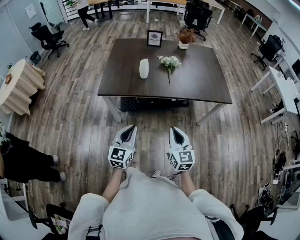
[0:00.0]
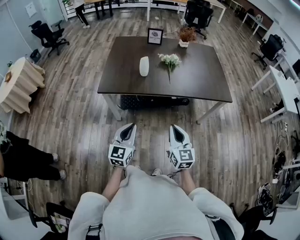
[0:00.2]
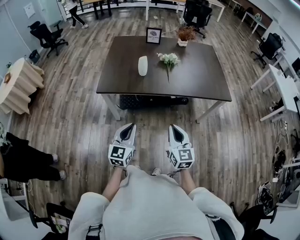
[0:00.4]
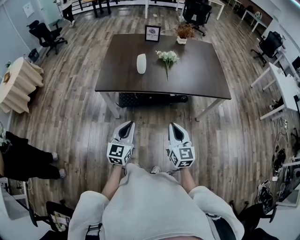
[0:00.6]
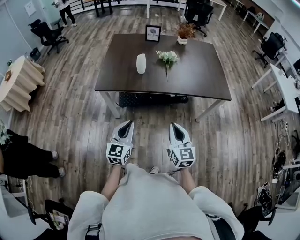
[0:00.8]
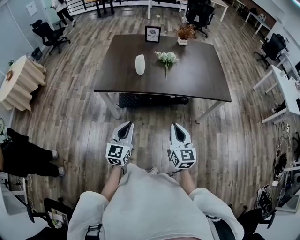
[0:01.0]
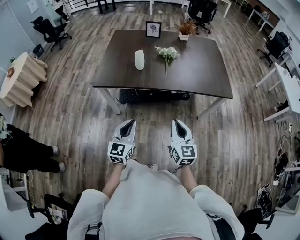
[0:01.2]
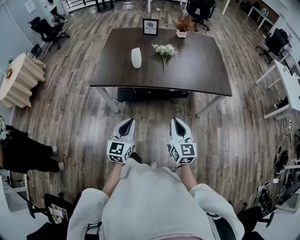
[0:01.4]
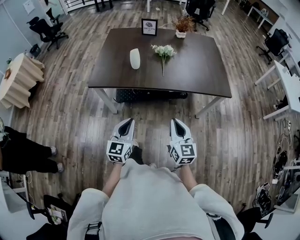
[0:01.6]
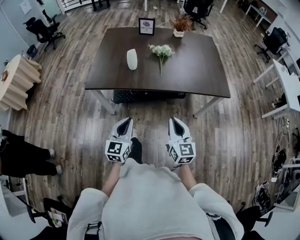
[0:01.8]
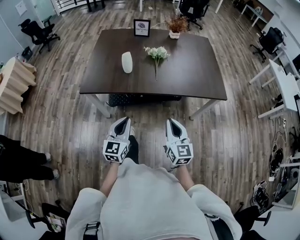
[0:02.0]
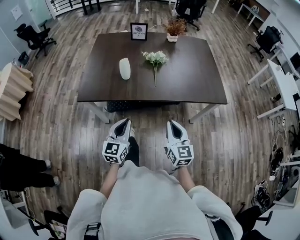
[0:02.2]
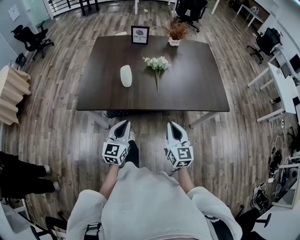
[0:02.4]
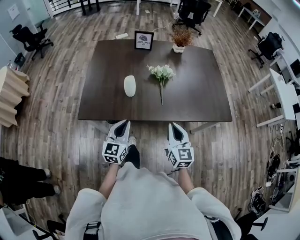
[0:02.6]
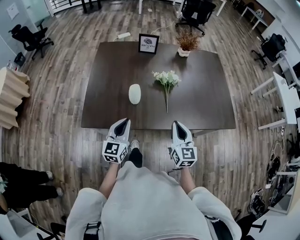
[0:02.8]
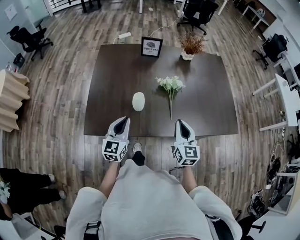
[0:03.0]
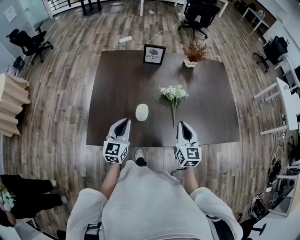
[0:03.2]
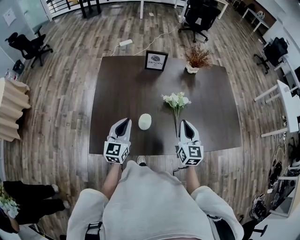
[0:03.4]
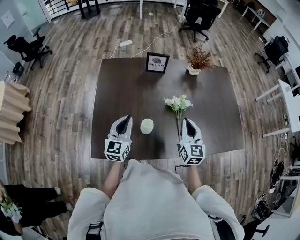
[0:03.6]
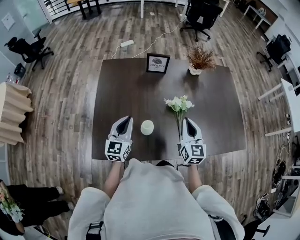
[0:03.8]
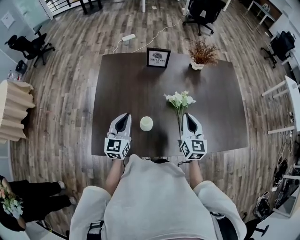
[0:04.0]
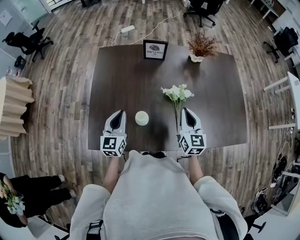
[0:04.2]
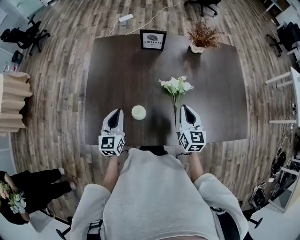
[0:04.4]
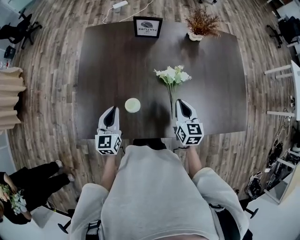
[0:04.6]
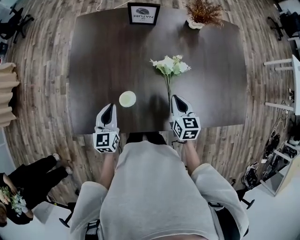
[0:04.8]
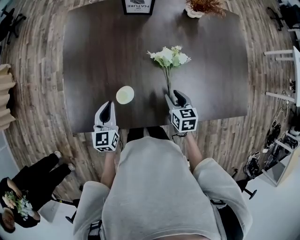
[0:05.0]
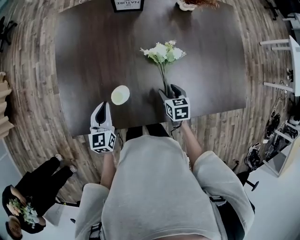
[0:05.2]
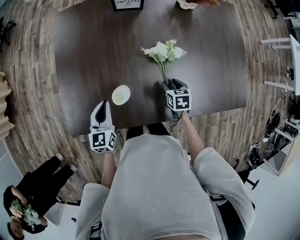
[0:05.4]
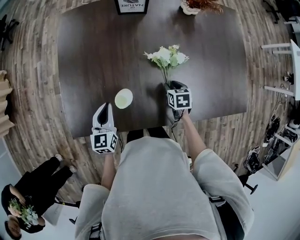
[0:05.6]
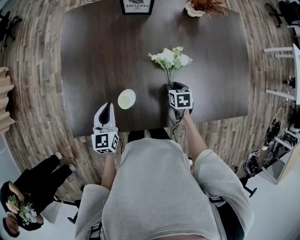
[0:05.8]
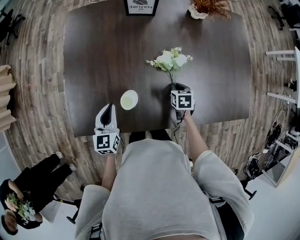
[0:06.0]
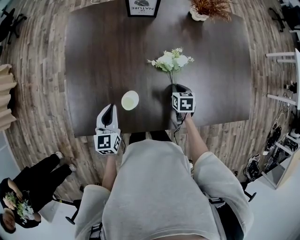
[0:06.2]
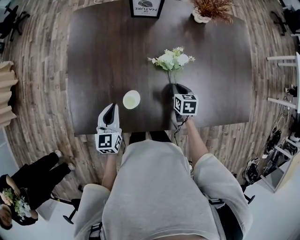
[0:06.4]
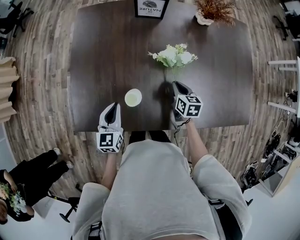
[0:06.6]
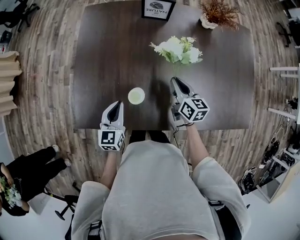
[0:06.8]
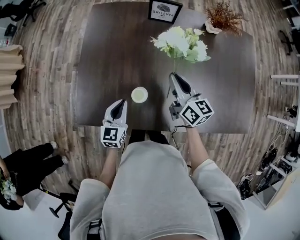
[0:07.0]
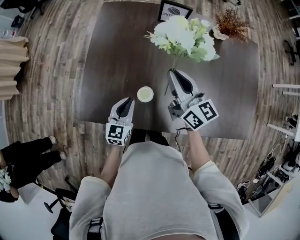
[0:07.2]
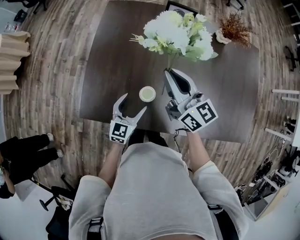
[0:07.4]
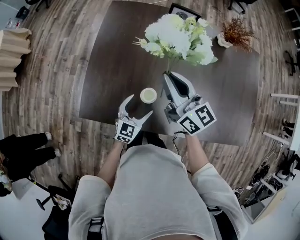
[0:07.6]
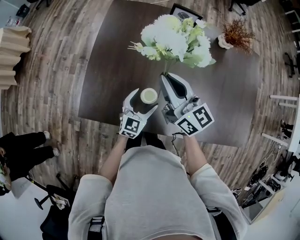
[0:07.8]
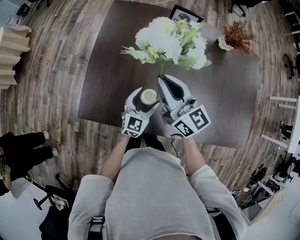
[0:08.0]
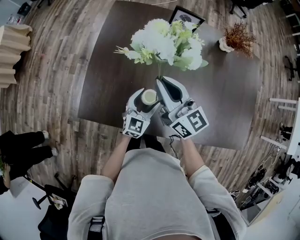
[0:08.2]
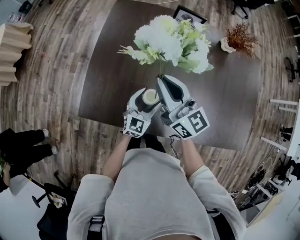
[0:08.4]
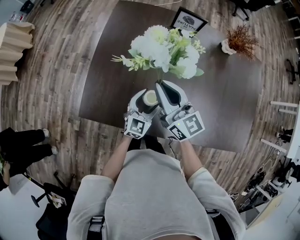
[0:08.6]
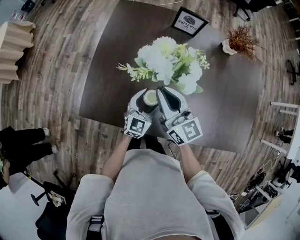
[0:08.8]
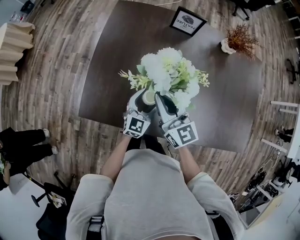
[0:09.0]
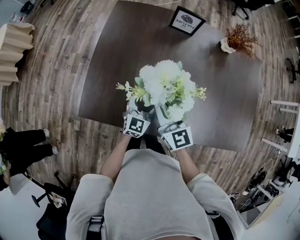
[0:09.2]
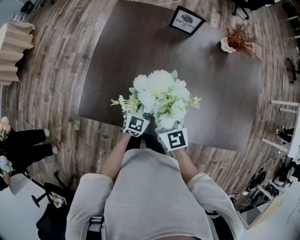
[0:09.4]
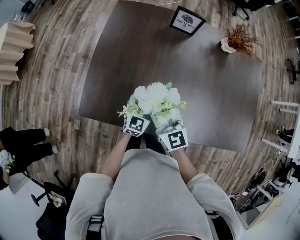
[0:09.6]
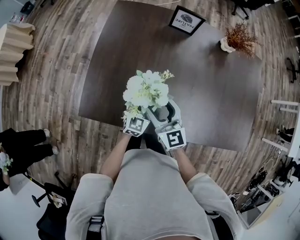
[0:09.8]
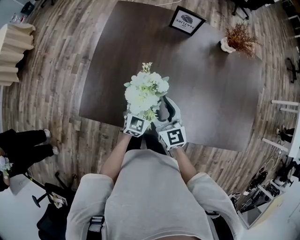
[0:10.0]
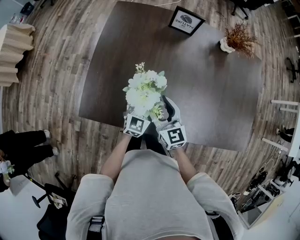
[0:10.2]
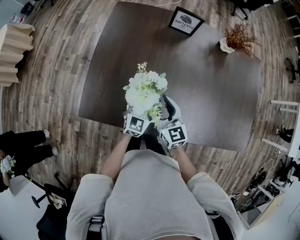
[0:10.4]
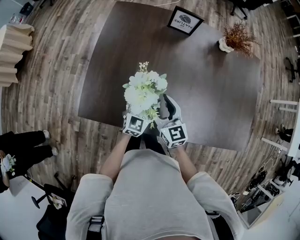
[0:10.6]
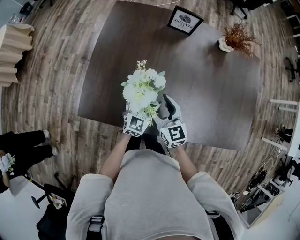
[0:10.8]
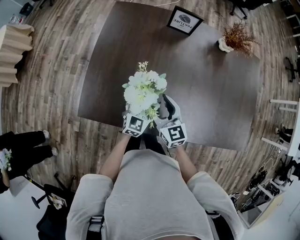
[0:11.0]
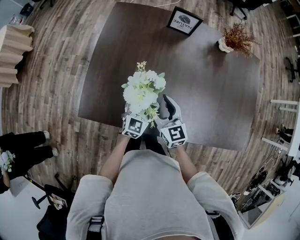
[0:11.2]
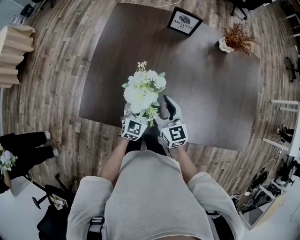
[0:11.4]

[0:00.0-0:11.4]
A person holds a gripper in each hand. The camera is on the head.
0:00.0 to 0:01.4: Both grippers move to the right, about 10 cm.
0:01.4 to 0:02.8: Both grippers move forward, approximately 30 cm.
0:02.8 to 0:04.2: The left gripper is displaced forward and to the left by approximately 20 cm. The right gripper moves forward, about 25 cm.
0:04.2 to 0:05.6: The left gripper shifts some 10 cm downward, while the right gripper travels downward by some 25 cm, points its fingers roughly 50 degrees further downward, and opens up.
0:05.6 to 0:07.2: The right gripper heads upward and to the left, covering roughly 30 cm, angles its fingers upward, by some 60 degrees, and closes.
0:07.2 to 0:08.6: The right gripper moves to the left, approximately 10 cm. Meanwhile the left gripper goes some 5 cm to the right, and opens its fingers.
0:08.6 to 0:10.0: The right gripper goes roughly 15 cm downward and backward, and opens.
0:10.0 to 0:11.4: There are only small adjustments of the grippers.

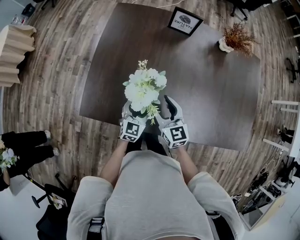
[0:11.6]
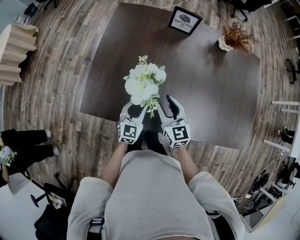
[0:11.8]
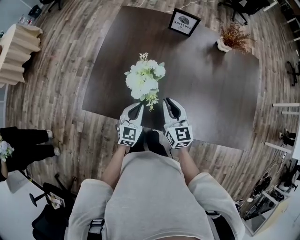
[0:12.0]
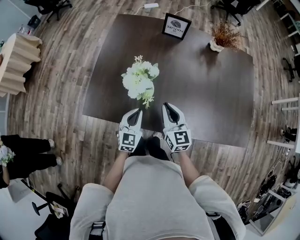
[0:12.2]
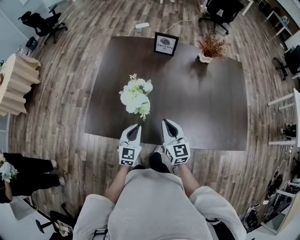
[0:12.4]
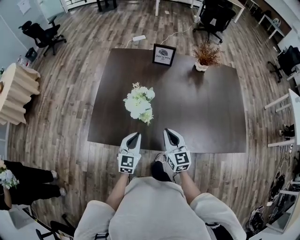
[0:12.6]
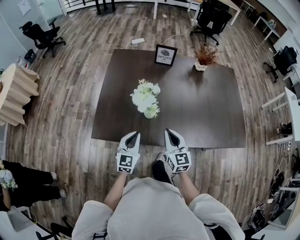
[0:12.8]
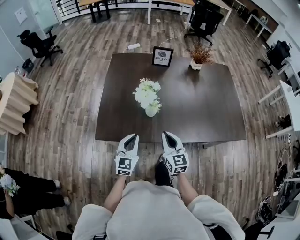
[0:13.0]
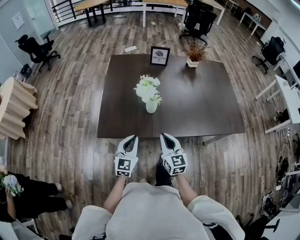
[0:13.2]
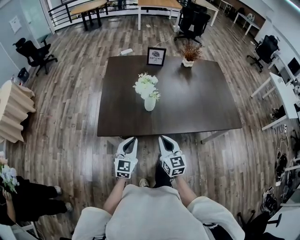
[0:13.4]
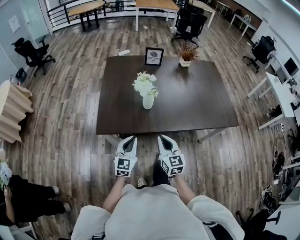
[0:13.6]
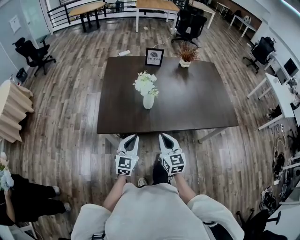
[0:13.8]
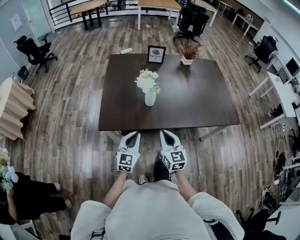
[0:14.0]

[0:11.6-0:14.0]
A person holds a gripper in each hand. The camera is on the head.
0:11.6 to 0:12.8: The right gripper moves backward and upward, some 15 cm, and closes, while the left gripper travels backward, upward and to the left by about 20 cm, and closes.
0:12.8 to 0:14.0: The two grippers go some 15 cm backward.

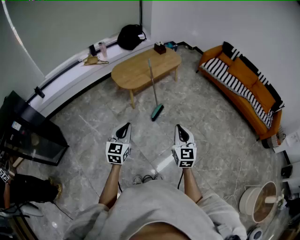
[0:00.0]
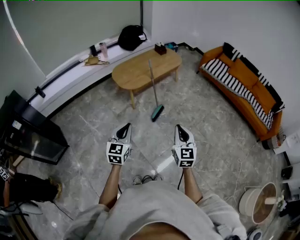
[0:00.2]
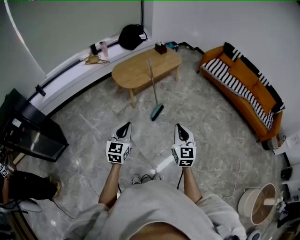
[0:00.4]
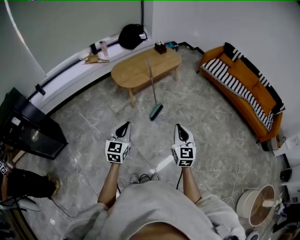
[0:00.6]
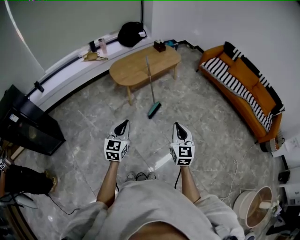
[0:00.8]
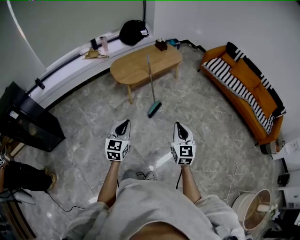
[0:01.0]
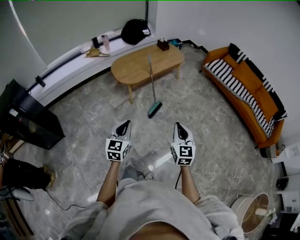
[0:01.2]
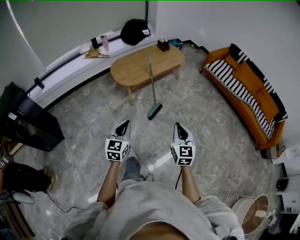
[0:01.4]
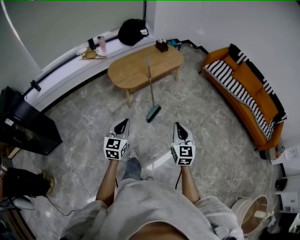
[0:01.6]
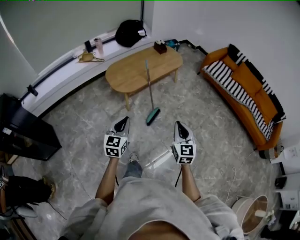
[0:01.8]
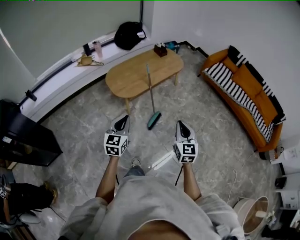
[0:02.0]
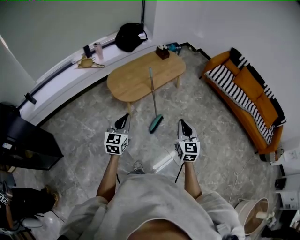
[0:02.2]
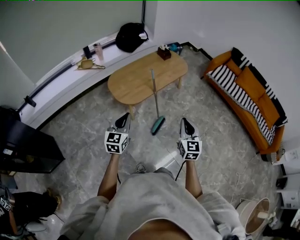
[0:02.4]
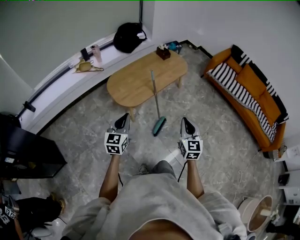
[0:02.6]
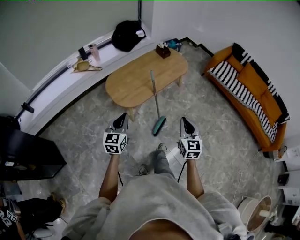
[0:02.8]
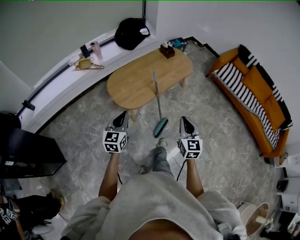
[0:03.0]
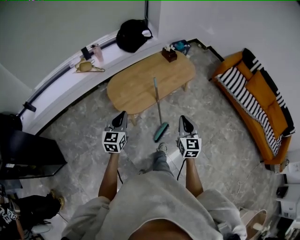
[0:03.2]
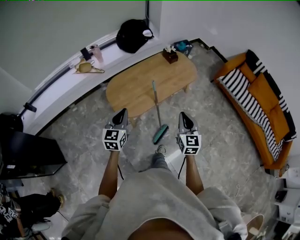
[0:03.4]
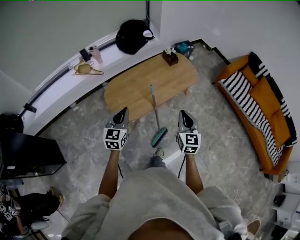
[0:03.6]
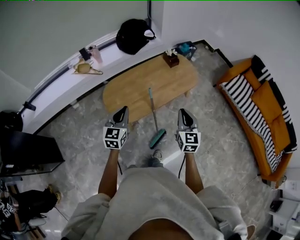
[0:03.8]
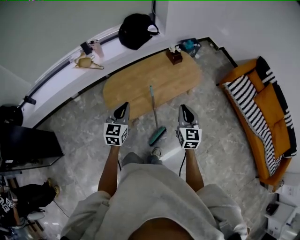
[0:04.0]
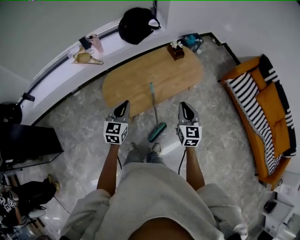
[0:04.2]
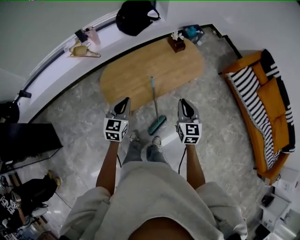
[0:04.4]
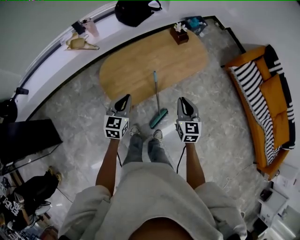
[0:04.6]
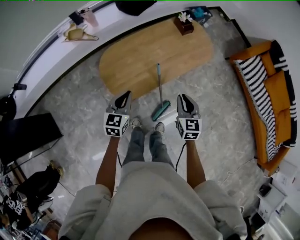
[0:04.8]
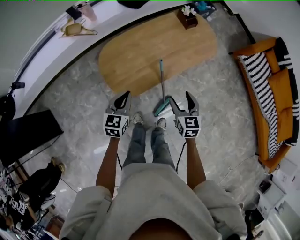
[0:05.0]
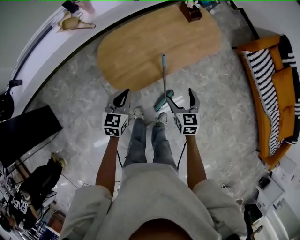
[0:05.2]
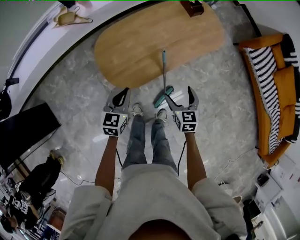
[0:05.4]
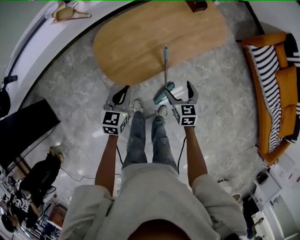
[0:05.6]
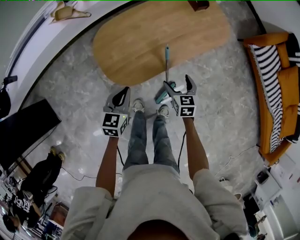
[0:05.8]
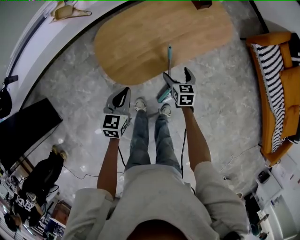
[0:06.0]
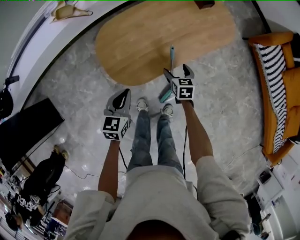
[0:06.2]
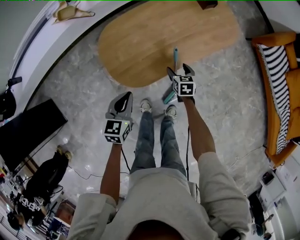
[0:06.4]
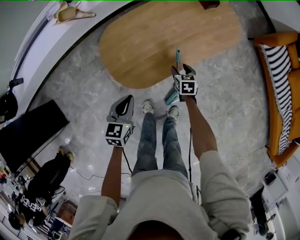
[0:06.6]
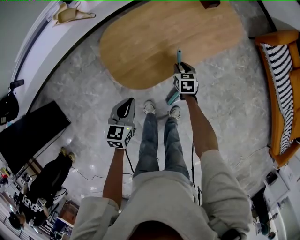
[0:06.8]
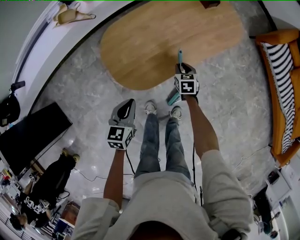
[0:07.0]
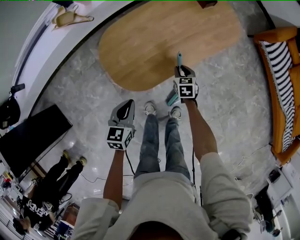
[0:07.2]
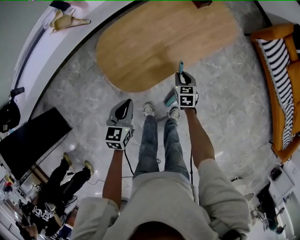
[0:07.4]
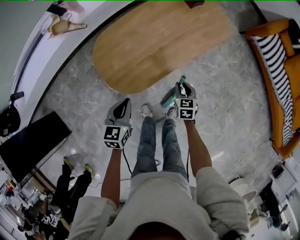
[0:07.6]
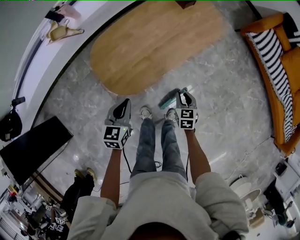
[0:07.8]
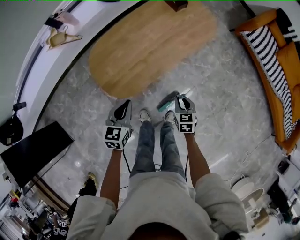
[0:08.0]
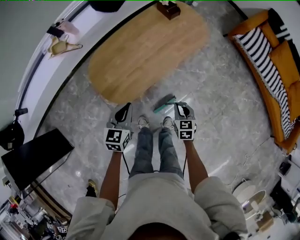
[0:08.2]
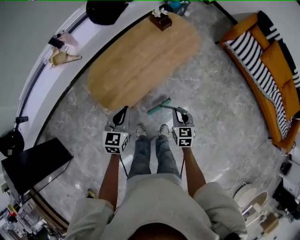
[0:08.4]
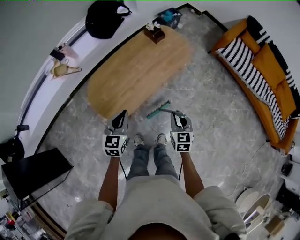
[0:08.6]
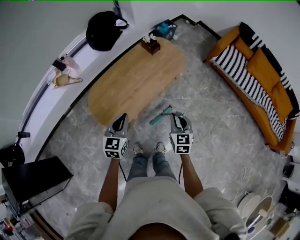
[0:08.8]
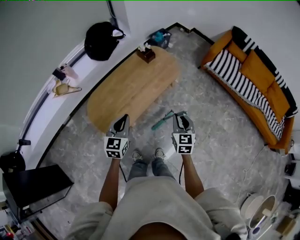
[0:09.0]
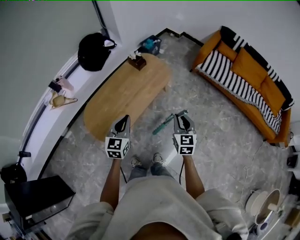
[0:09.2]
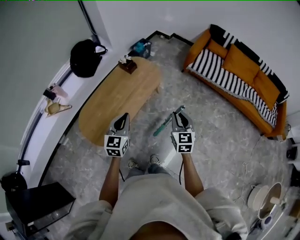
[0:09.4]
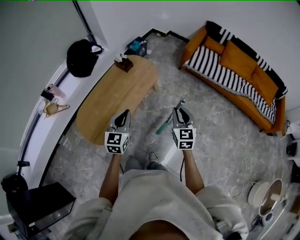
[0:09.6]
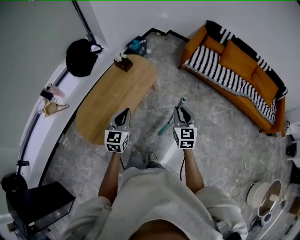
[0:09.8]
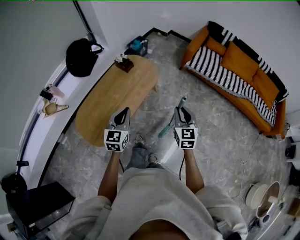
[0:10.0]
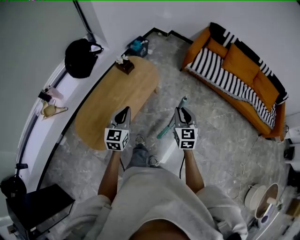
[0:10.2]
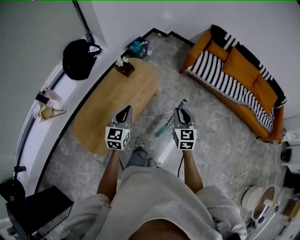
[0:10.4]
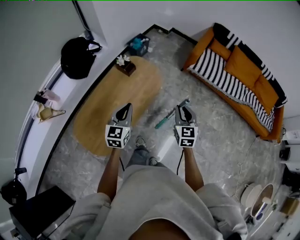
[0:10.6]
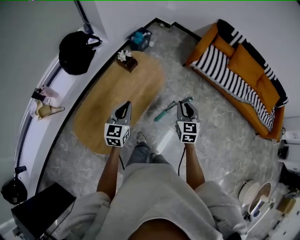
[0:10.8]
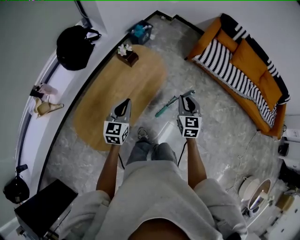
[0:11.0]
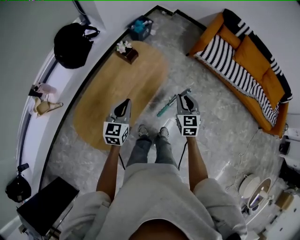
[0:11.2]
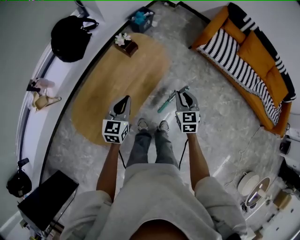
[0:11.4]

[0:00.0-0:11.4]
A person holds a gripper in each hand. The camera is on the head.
0:00.0 to 0:01.4: The left gripper heads to the right, covering about 5 cm. Meanwhile the right gripper heads to the right and forward, covering approximately 10 cm.
0:01.4 to 0:02.8: The right gripper heads forward, covering roughly 30 cm. Meanwhile the left gripper goes some 35 cm forward and to the left.
0:02.8 to 0:04.2: The grippers both shift forward by approximately 30 cm.
0:04.2 to 0:05.6: Both grippers travel together downward, approximately 25 cm. The right gripper turns by about 30 degrees, and opens its fingers.
0:05.6 to 0:07.2: The right gripper is displaced downward and forward by some 15 cm, and closes.
0:07.2 to 0:08.6: The left gripper travels upward and to the right by about 20 cm, and changes its angle by some 20 degrees. The right gripper goes roughly 35 cm upward, to the right and backward, and turns by some 20 degrees.
0:08.6 to 0:10.0: The left gripper heads to the right, forward and upward, covering some 20 cm. The right gripper is displaced to the right, upward and forward by roughly 25 cm.
0:10.0 to 0:11.4: Both grippers move forward, downward and to the left, some 25 cm.
